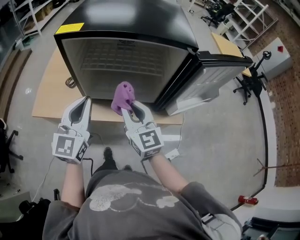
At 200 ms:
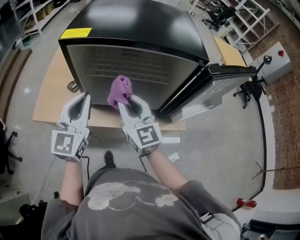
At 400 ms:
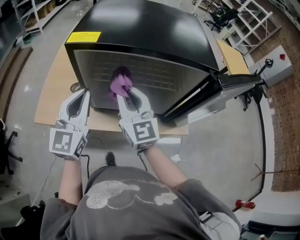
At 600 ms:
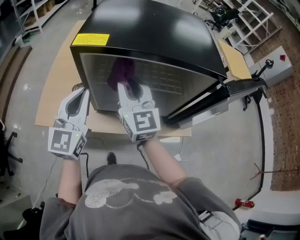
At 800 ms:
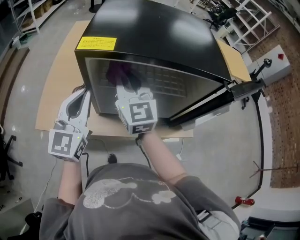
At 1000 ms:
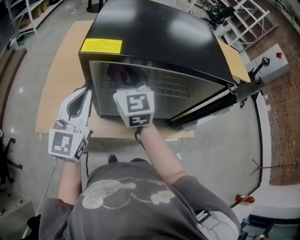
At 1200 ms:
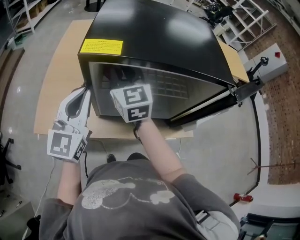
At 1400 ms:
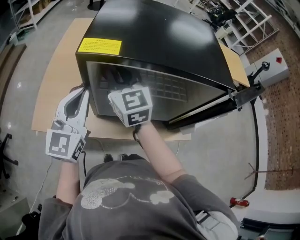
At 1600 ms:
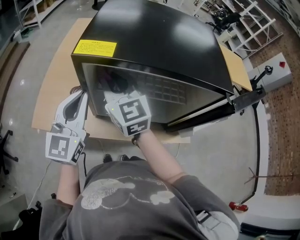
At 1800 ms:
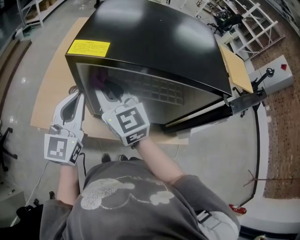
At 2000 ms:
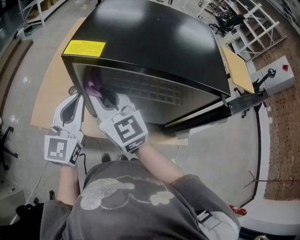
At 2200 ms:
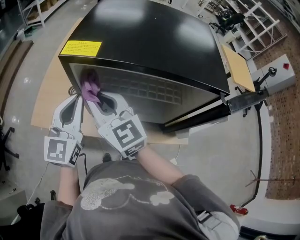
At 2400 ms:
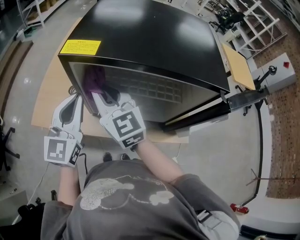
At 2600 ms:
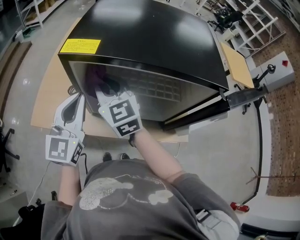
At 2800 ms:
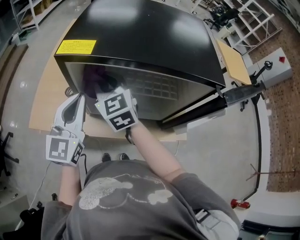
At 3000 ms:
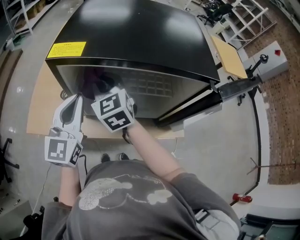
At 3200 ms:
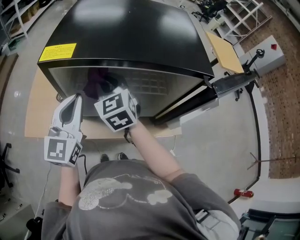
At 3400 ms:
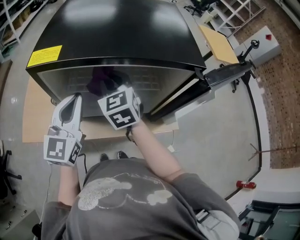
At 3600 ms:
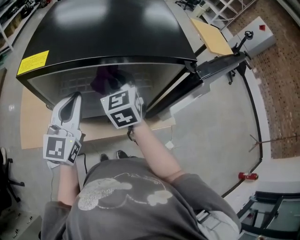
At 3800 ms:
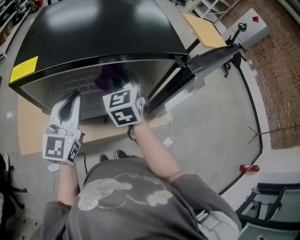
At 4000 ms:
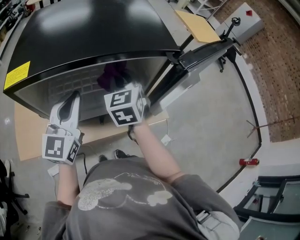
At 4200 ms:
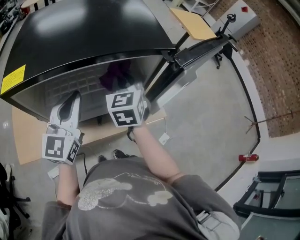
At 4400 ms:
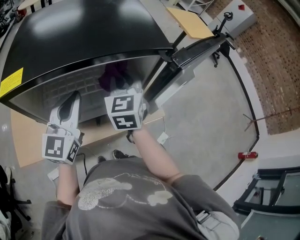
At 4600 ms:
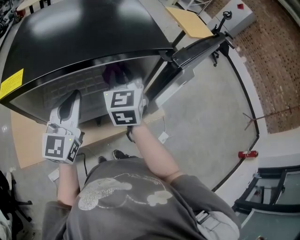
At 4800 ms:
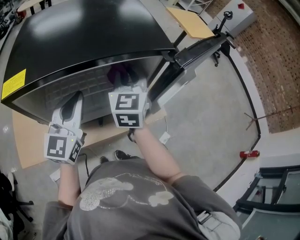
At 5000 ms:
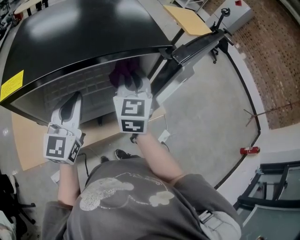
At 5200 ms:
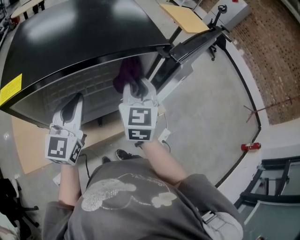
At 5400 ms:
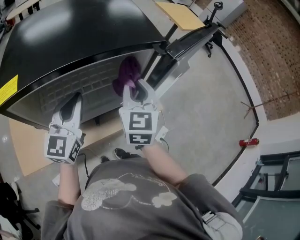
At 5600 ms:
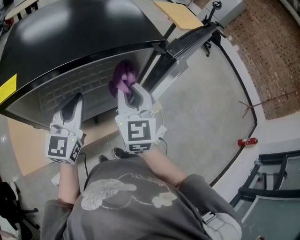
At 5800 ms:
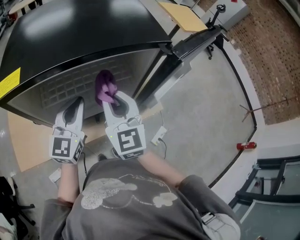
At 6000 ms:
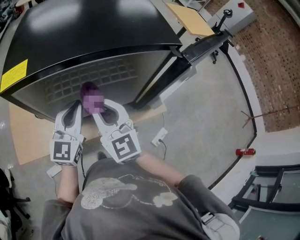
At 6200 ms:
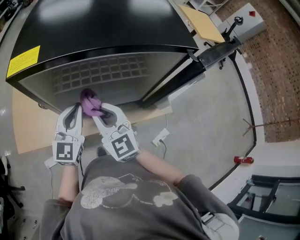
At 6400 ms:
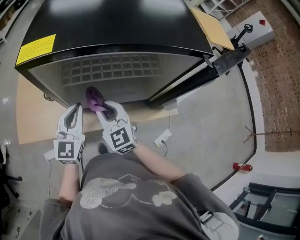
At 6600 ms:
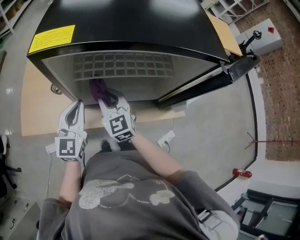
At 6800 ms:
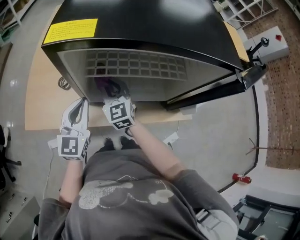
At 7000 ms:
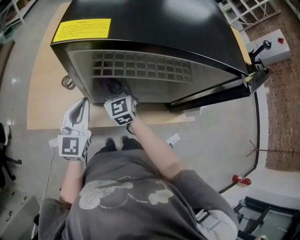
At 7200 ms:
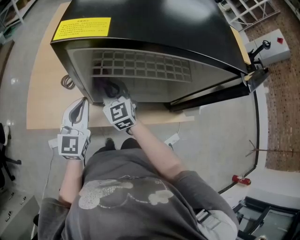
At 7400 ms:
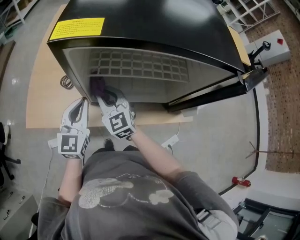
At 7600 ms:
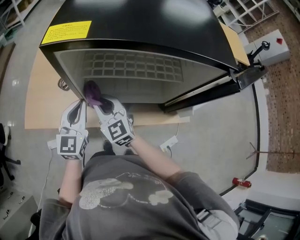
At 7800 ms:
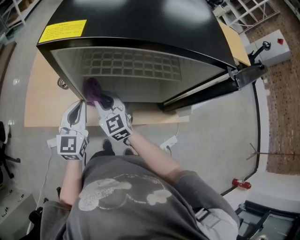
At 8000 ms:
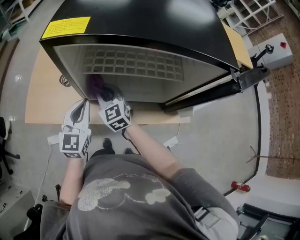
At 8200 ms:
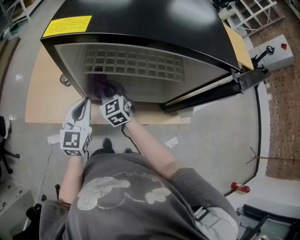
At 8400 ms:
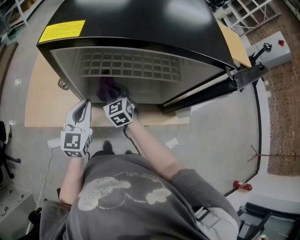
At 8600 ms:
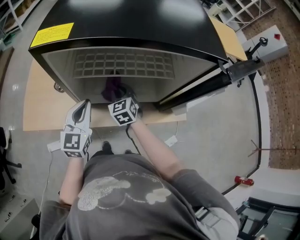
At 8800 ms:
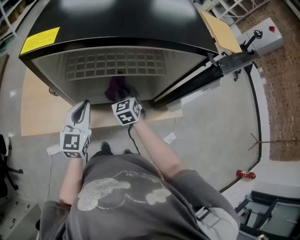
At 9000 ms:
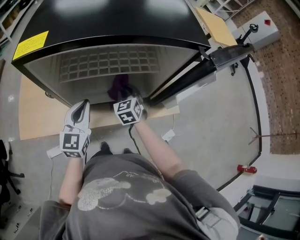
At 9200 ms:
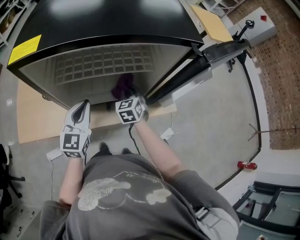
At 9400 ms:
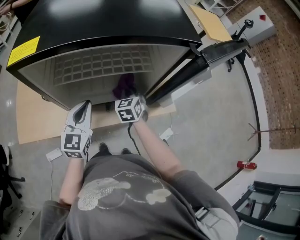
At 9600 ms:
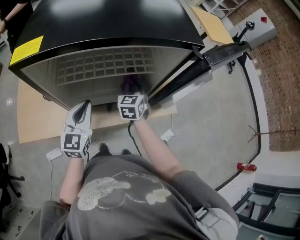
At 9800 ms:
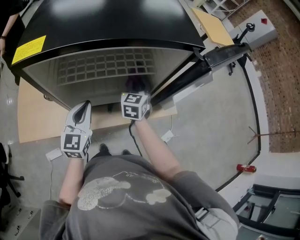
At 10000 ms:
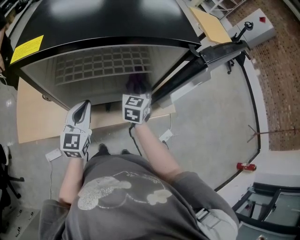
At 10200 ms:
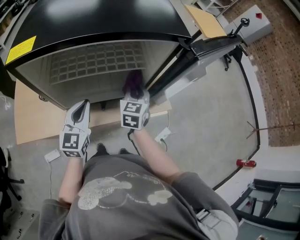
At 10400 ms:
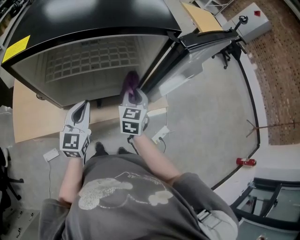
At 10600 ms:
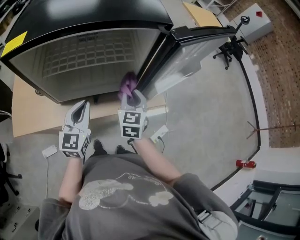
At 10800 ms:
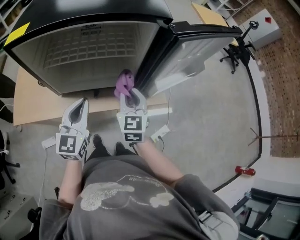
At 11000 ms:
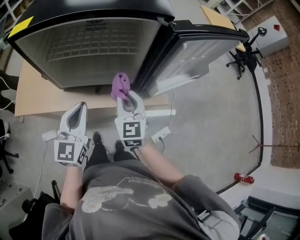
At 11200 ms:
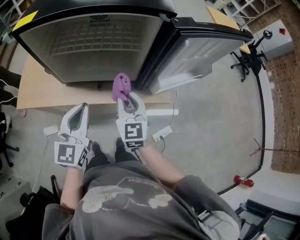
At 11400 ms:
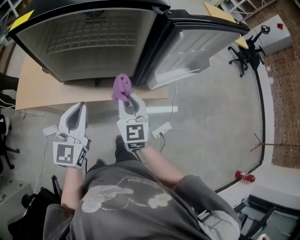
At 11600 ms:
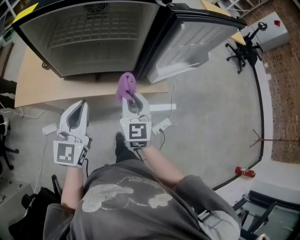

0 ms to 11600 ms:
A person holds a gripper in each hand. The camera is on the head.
0 ms to 1400 ms: The right gripper heads forward and to the left, covering roughly 25 cm. Meanwhile the left gripper travels forward and to the left by about 15 cm.
1400 ms to 2800 ms: The right gripper moves about 10 cm backward and comes back.
2800 ms to 4400 ms: The left gripper shifts by about 15 cm, and rotates some 20 degrees. The right gripper moves approximately 25 cm, and turns by approximately 40 degrees.
4400 ms to 5800 ms: The left gripper moves downward, approximately 5 cm. Meanwhile the right gripper is displaced backward by approximately 10 cm.
5800 ms to 7200 ms: Both grippers move to the left and downward, approximately 20 cm. The left gripper changes its angle by roughly 20 degrees. The right gripper rotates about 30 degrees.
7200 ms to 8800 ms: The left gripper is displaced to the right by roughly 10 cm, while the right gripper moves to the right and downward, about 15 cm, and turns by roughly 20 degrees.
8800 ms to 10200 ms: The right gripper is displaced to the right and upward by about 15 cm, and swivels about 30 degrees. Meanwhile the left gripper is displaced to the right by approximately 5 cm.
10200 ms to 11600 ms: The left gripper shifts roughly 15 cm backward, to the right and upward. Meanwhile the right gripper shifts some 15 cm backward, and changes its angle by approximately 30 degrees.

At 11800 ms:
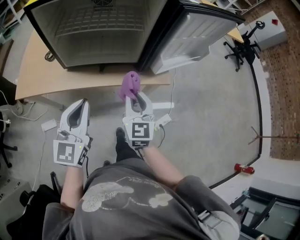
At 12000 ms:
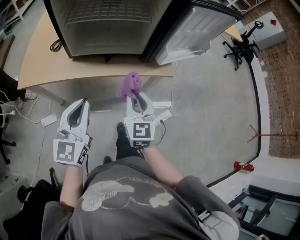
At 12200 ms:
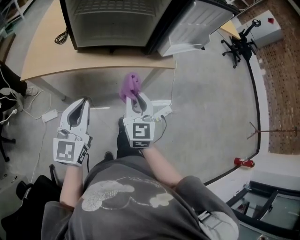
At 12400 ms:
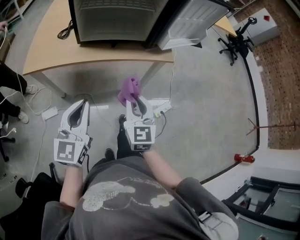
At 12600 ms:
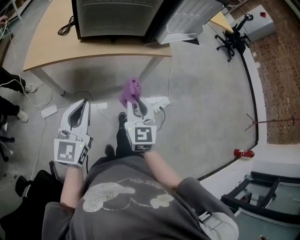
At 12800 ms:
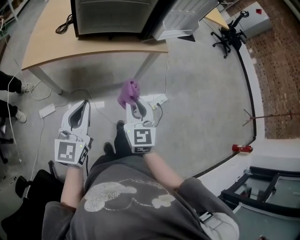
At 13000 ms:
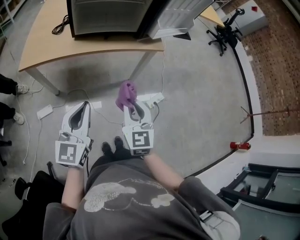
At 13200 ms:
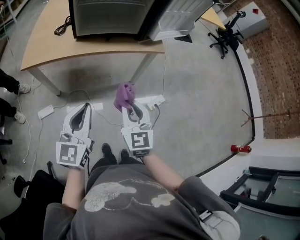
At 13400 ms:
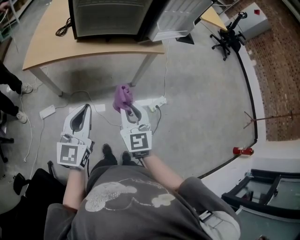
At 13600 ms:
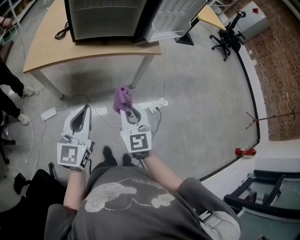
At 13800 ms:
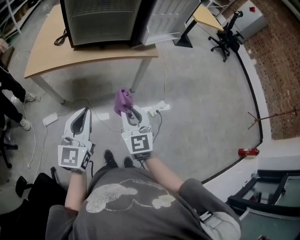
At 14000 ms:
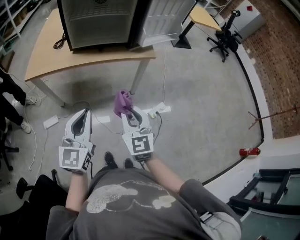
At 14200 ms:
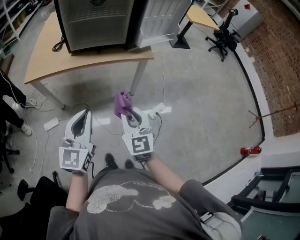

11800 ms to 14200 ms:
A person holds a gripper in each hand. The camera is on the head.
11800 ms to 13000 ms: The two grippers go about 25 cm backward.
13000 ms to 14200 ms: Both grippers travel together to the right, roughly 5 cm.

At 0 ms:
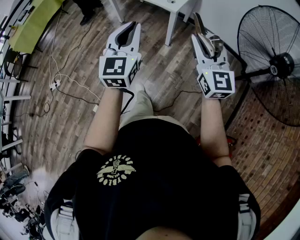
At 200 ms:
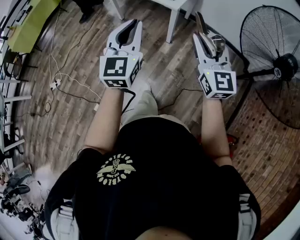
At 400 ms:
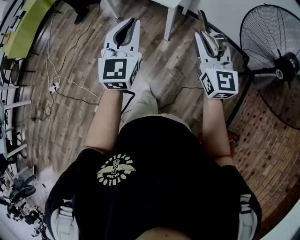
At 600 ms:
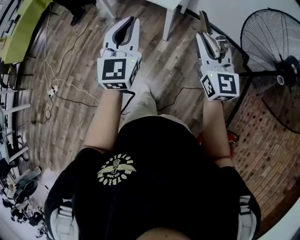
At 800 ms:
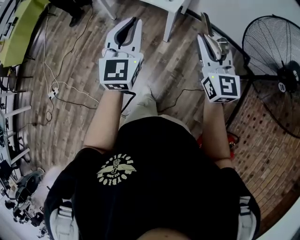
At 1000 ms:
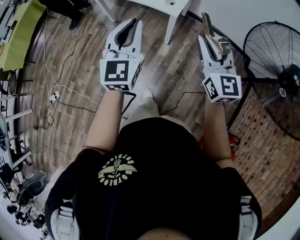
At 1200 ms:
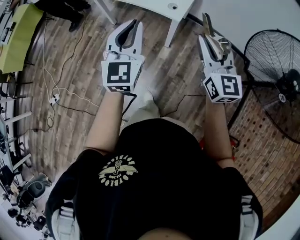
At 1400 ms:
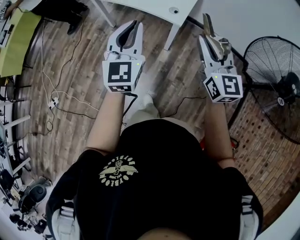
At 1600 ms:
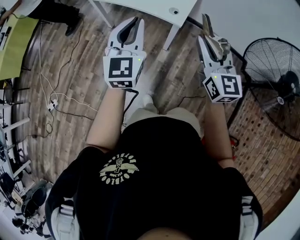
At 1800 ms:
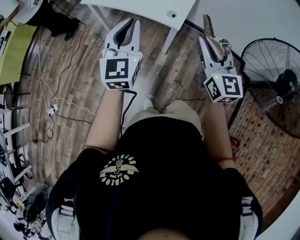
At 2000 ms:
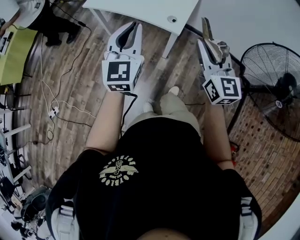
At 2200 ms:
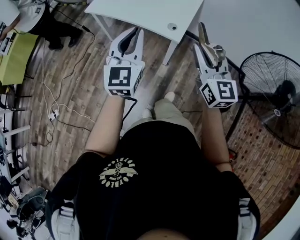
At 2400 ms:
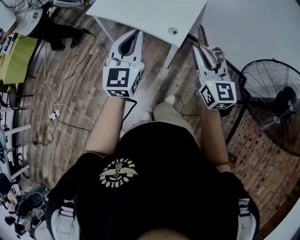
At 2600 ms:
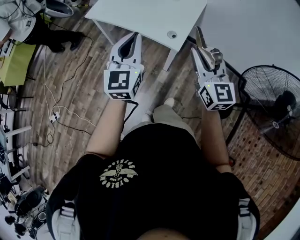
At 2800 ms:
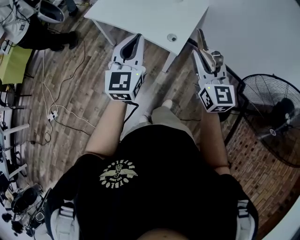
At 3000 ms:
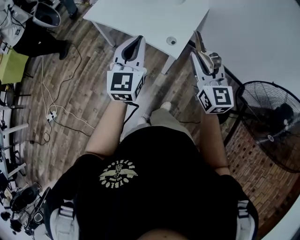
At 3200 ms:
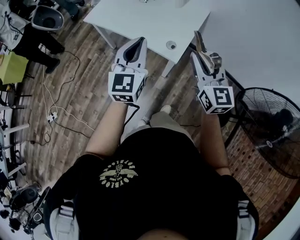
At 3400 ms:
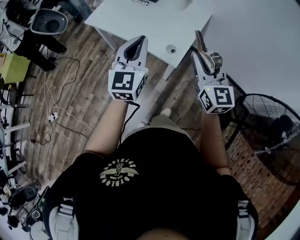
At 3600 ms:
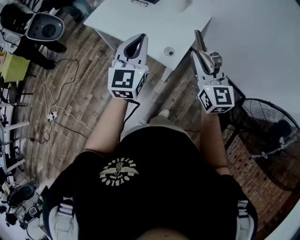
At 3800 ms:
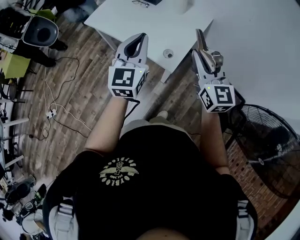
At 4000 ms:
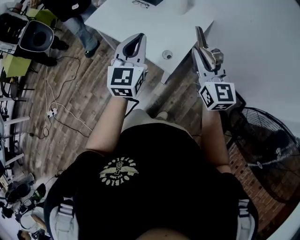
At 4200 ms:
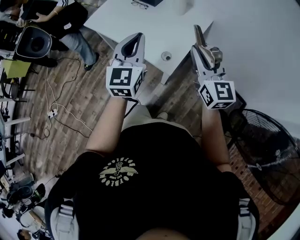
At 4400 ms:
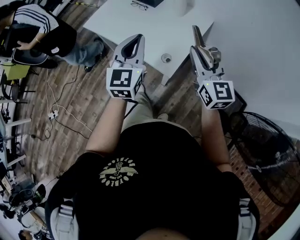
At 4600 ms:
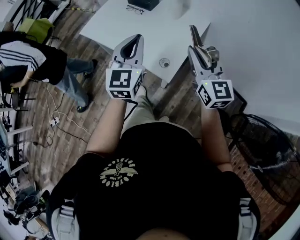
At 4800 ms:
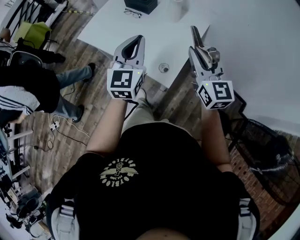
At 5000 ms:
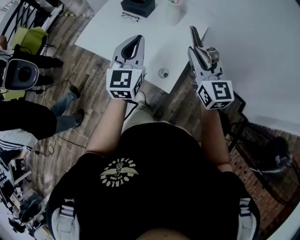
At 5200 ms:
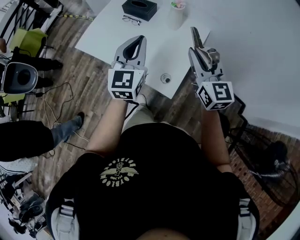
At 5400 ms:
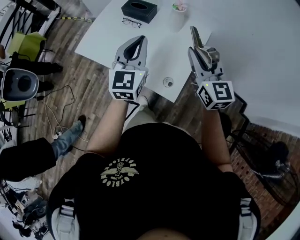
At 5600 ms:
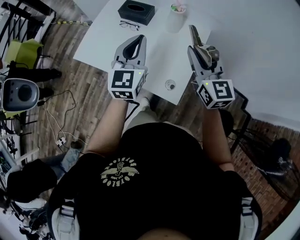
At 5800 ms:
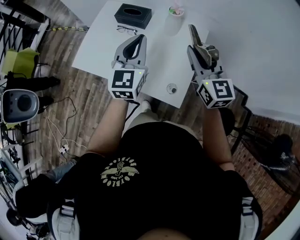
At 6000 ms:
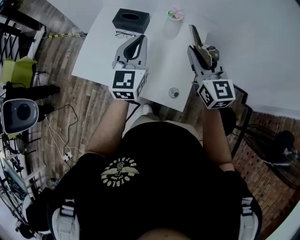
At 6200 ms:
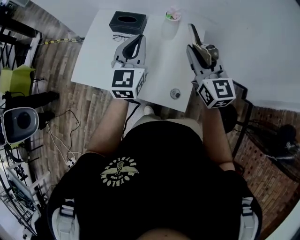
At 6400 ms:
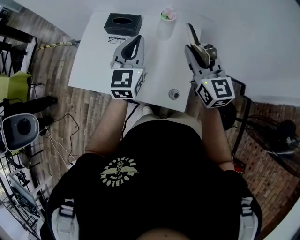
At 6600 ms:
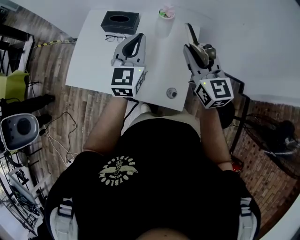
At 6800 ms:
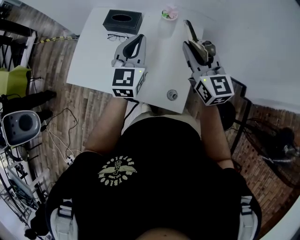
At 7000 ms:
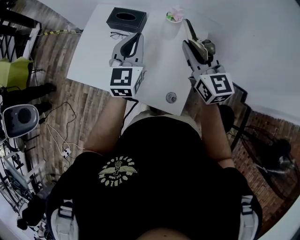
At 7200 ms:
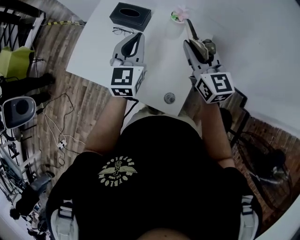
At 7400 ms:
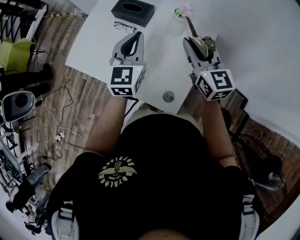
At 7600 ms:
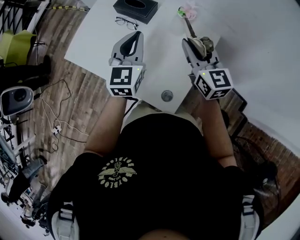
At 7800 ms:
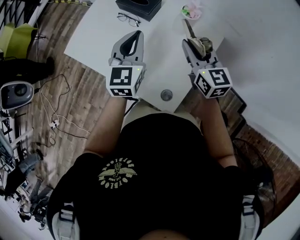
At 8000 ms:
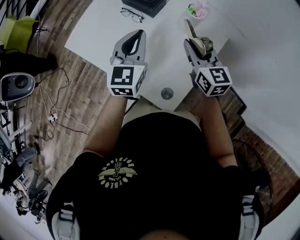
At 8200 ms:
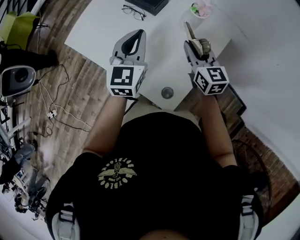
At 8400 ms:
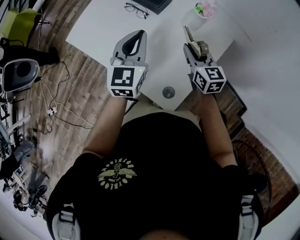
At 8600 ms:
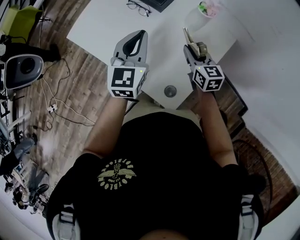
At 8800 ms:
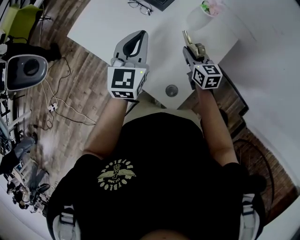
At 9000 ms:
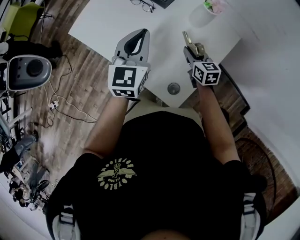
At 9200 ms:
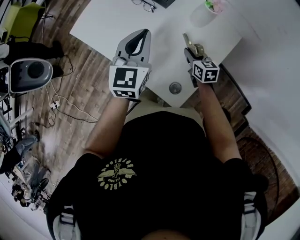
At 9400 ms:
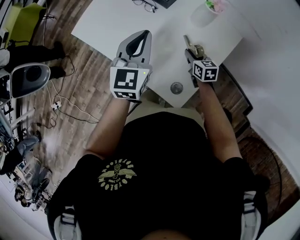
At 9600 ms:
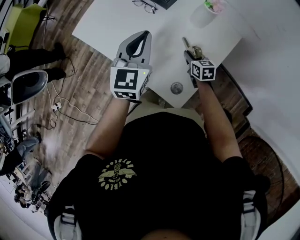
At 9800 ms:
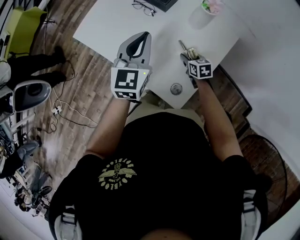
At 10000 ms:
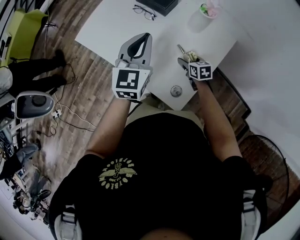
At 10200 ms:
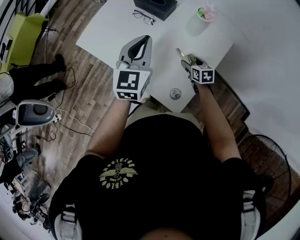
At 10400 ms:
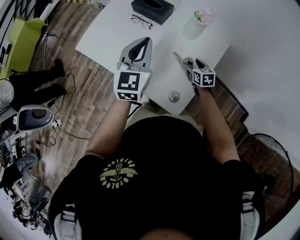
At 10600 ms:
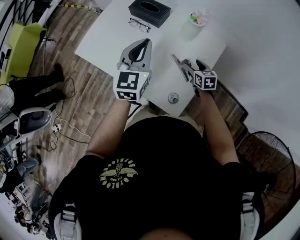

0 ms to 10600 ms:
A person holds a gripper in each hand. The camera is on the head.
0 ms to 1600 ms: Both grippers travel together forward, some 30 cm.
1600 ms to 3000 ms: The two grippers go some 15 cm forward.
3000 ms to 4600 ms: Both grippers travel together forward and to the right, about 15 cm.
4600 ms to 6000 ms: The grippers both shift forward by roughly 20 cm.
6000 ms to 7600 ms: The right gripper is displaced forward and downward by roughly 15 cm. Meanwhile the left gripper is displaced downward and forward by about 10 cm.
7600 ms to 9000 ms: The left gripper shifts some 5 cm downward; the right gripper shifts about 25 cm downward, and rotates about 30 degrees.
9000 ms to 10600 ms: The left gripper moves upward, some 5 cm. Meanwhile the right gripper shifts by about 5 cm, and opens up.
